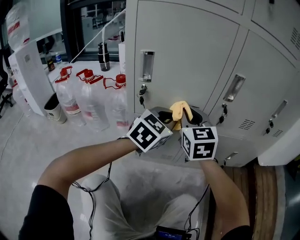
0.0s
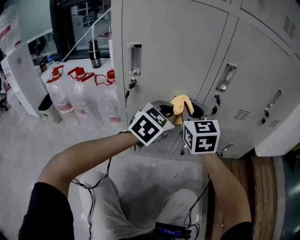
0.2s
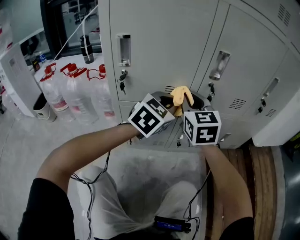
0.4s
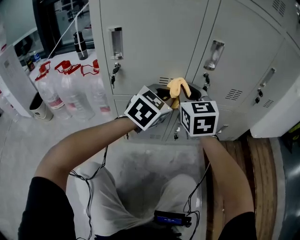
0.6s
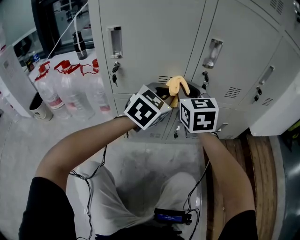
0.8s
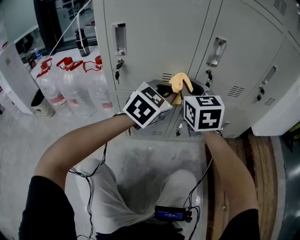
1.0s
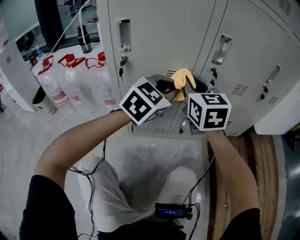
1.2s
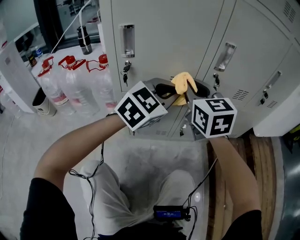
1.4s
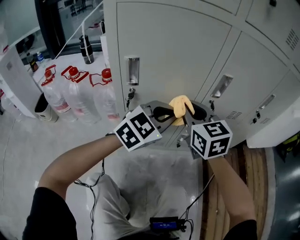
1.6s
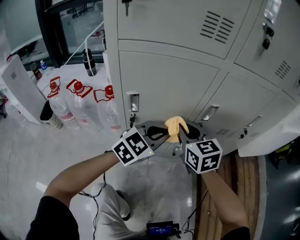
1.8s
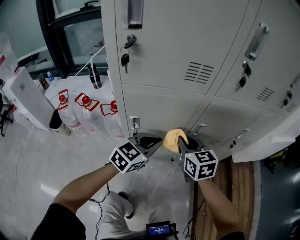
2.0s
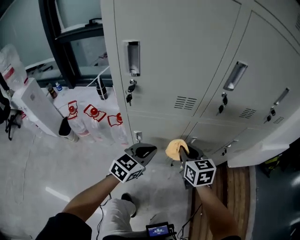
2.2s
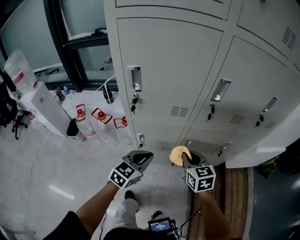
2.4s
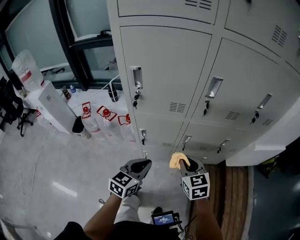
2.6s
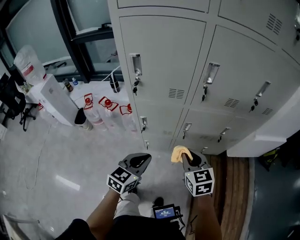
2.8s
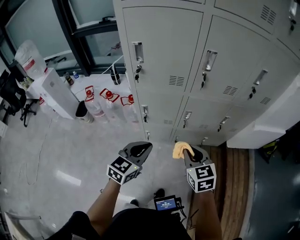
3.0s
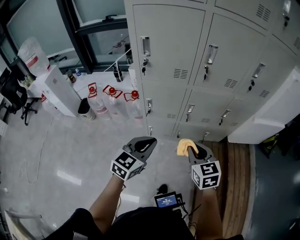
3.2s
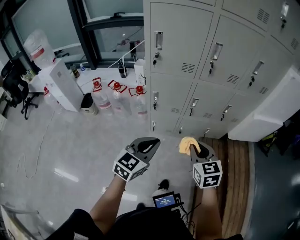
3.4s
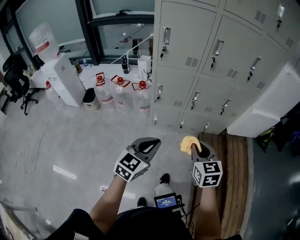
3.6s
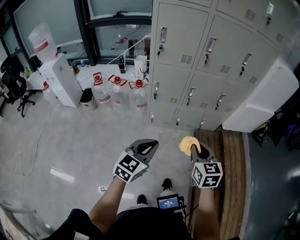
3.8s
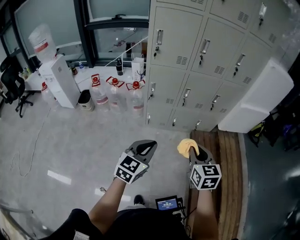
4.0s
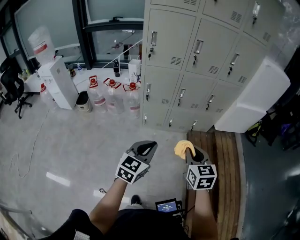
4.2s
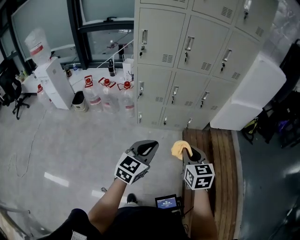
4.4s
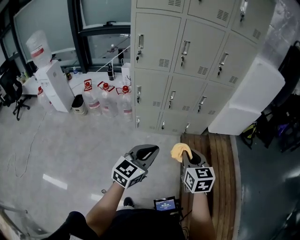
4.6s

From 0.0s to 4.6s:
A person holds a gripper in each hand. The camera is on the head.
From 0.0s to 1.6s: The grippers both shift upward by some 5 cm.
From 1.6s to 3.0s: The grippers both shift upward and backward by about 40 cm. The left gripper swivels approximately 30 degrees.
From 3.0s to 4.6s: The right gripper goes about 30 cm backward; the left gripper heads backward and to the right, covering roughly 35 cm.

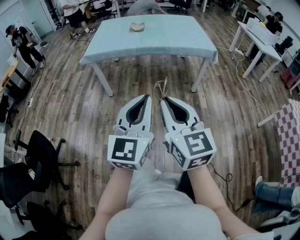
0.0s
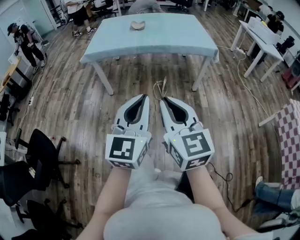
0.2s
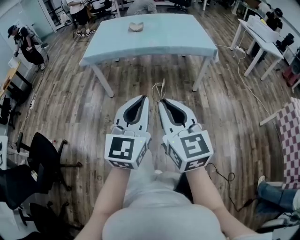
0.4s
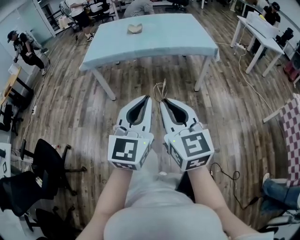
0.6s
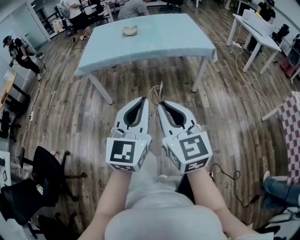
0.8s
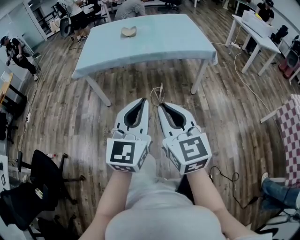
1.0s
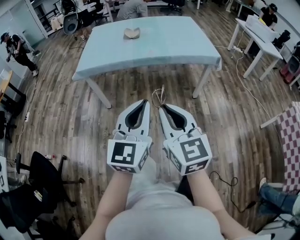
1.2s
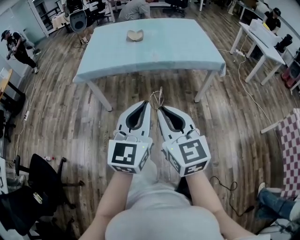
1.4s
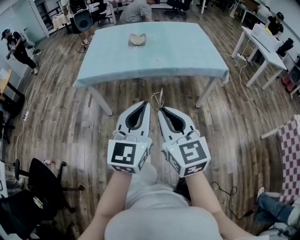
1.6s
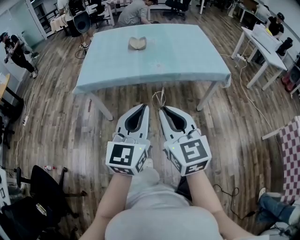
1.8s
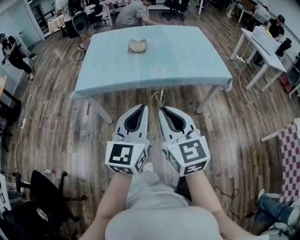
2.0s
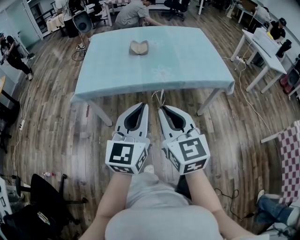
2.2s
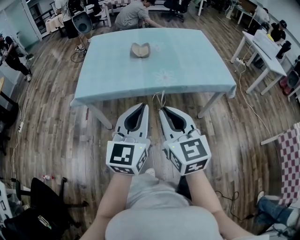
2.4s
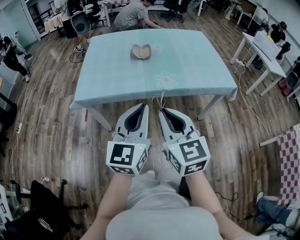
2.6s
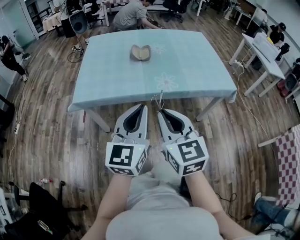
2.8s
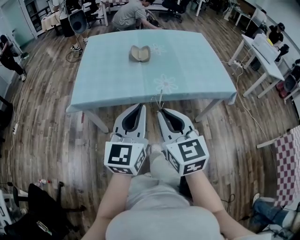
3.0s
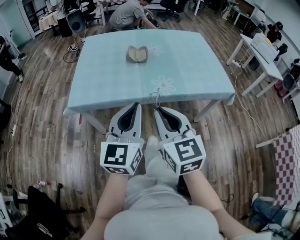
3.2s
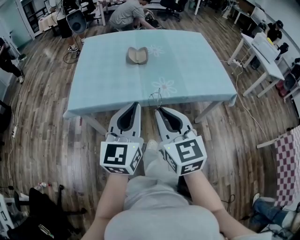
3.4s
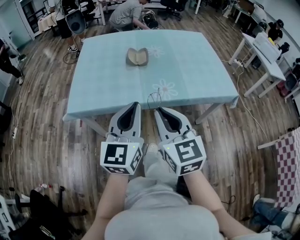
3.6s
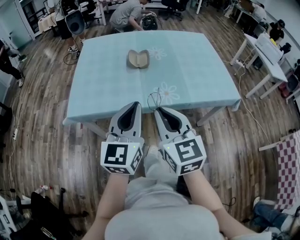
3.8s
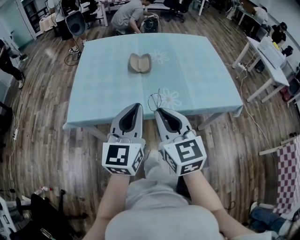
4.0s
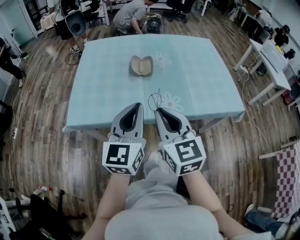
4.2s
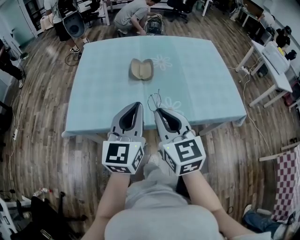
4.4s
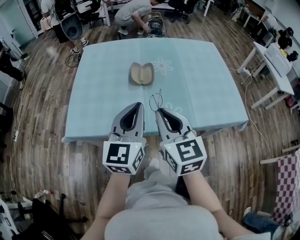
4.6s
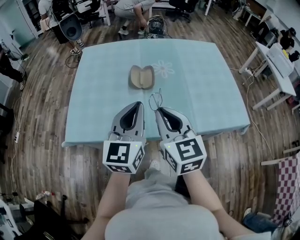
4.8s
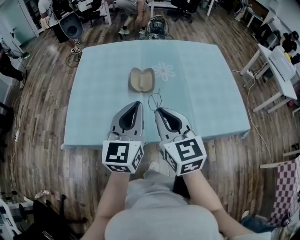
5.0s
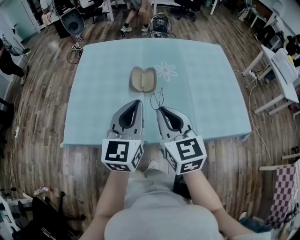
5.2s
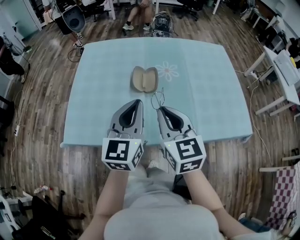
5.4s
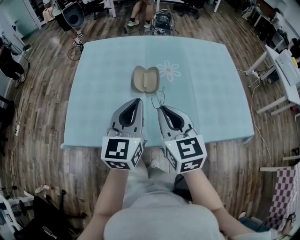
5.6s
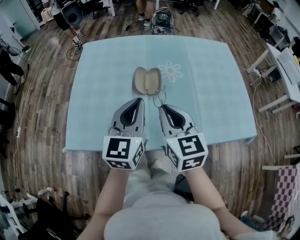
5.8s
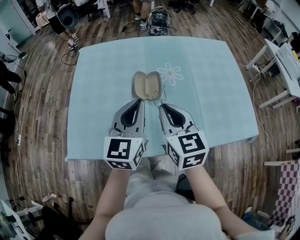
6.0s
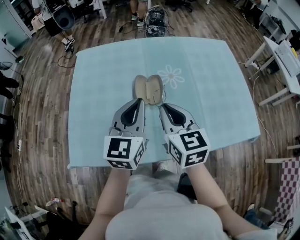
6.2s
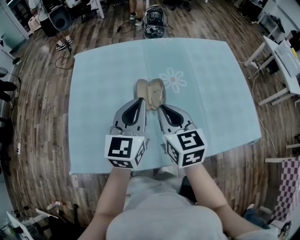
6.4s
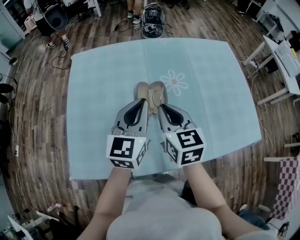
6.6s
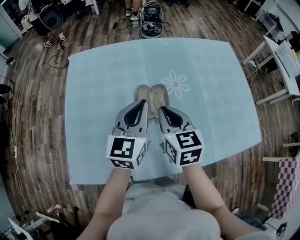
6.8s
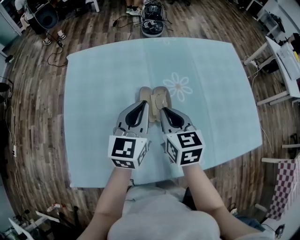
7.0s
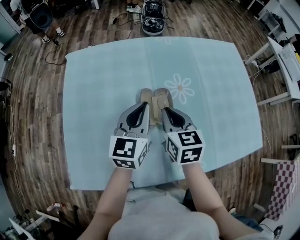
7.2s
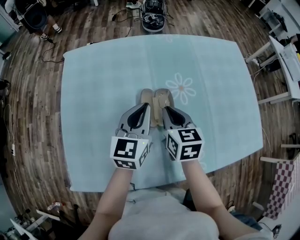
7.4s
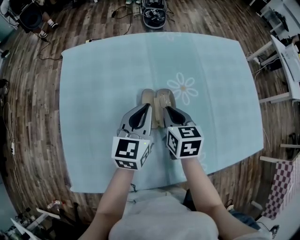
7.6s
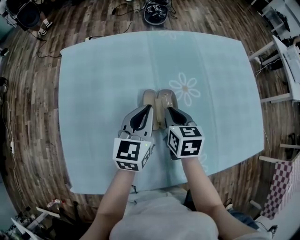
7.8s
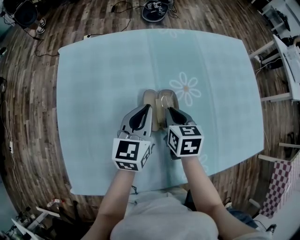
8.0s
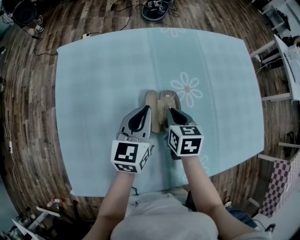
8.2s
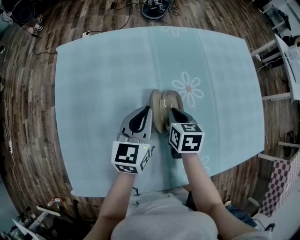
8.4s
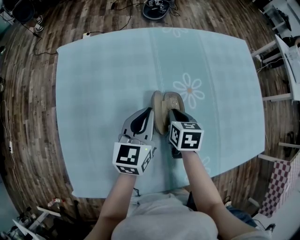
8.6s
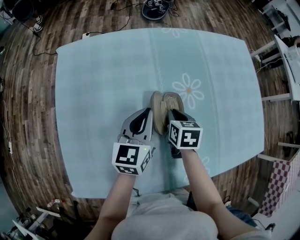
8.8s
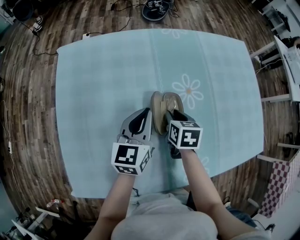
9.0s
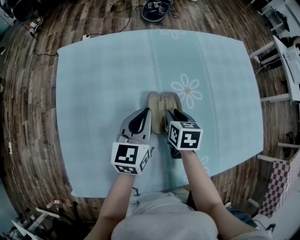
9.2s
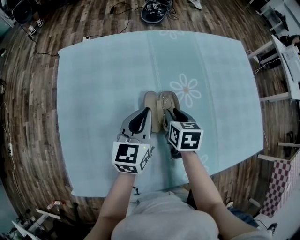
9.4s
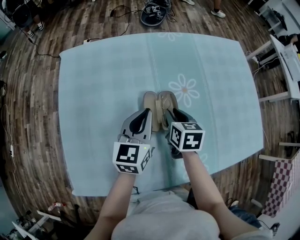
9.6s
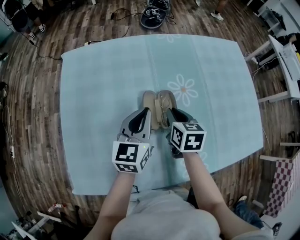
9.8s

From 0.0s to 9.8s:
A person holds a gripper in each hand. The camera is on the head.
From 0.0s to 1.4s: Both grippers move forward, approximately 20 cm.
From 1.4s to 2.8s: The left gripper travels forward and to the left by about 25 cm, while the right gripper travels forward by about 25 cm.
From 2.8s to 4.2s: The grippers both shift forward by approximately 15 cm.
From 4.2s to 5.6s: Both grippers move forward, roughly 15 cm.
From 5.6s to 7.0s: The right gripper shifts about 20 cm forward and downward; the left gripper heads forward, covering roughly 20 cm.
From 7.0s to 8.4s: The left gripper shifts roughly 10 cm downward, while the right gripper moves downward and forward, about 15 cm, and rotates approximately 20 degrees.
From 8.4s to 9.8s: The grippers stay close to where they were, moving slightly.

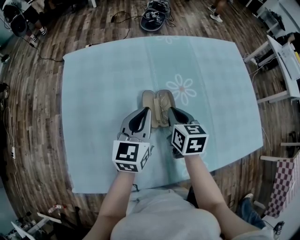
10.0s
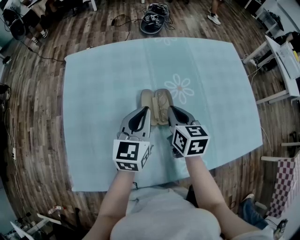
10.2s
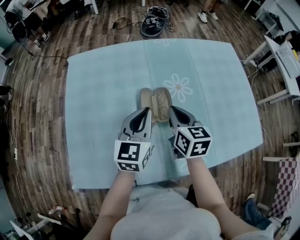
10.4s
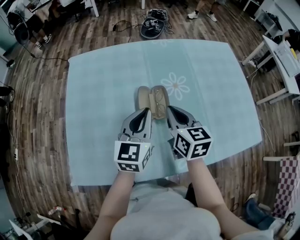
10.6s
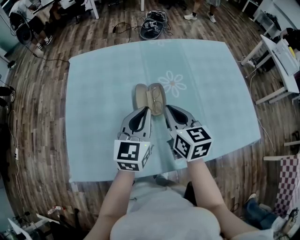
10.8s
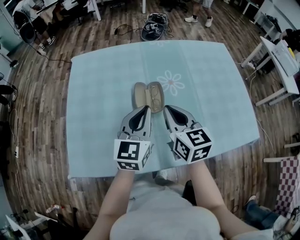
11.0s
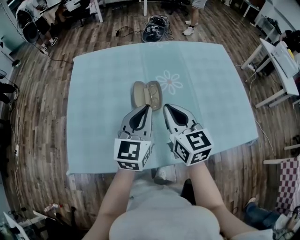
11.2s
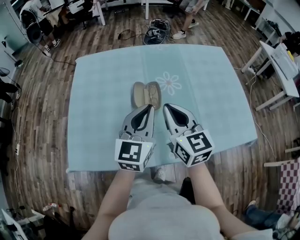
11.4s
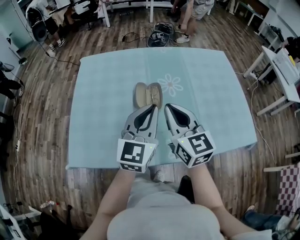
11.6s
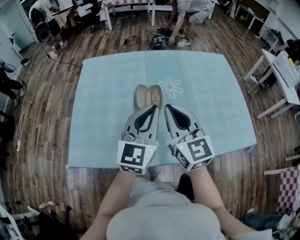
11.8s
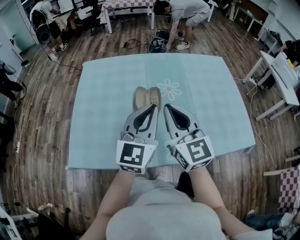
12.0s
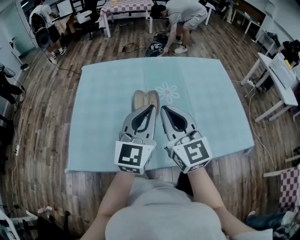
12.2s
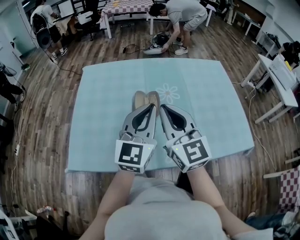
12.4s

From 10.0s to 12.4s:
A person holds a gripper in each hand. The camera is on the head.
From 10.0s to 11.2s: The right gripper moves upward and backward, about 15 cm, and turns by some 30 degrees. The left gripper moves backward, upward and to the right, about 15 cm.
From 11.2s to 12.4s: The left gripper moves upward, roughly 10 cm, while the right gripper is displaced upward and backward by about 10 cm, and changes its angle by some 20 degrees.

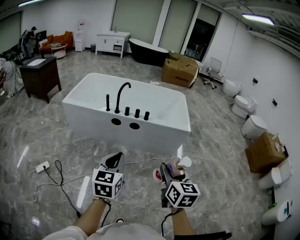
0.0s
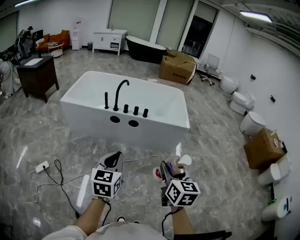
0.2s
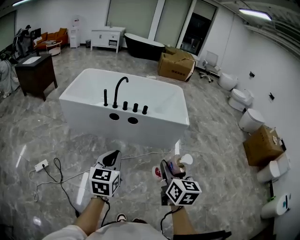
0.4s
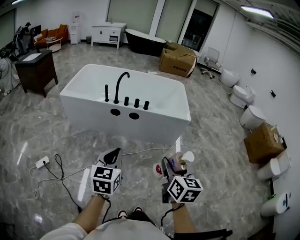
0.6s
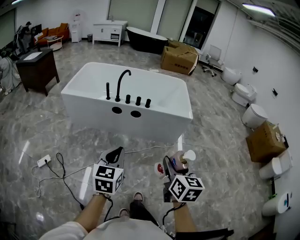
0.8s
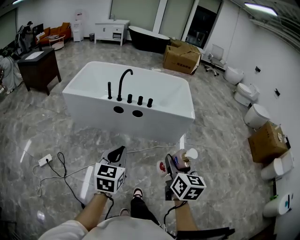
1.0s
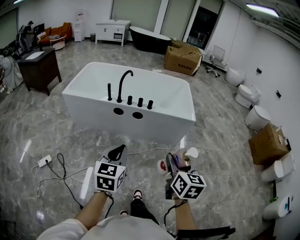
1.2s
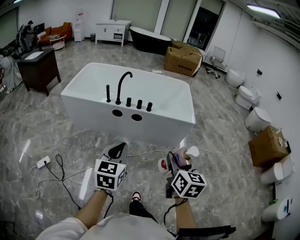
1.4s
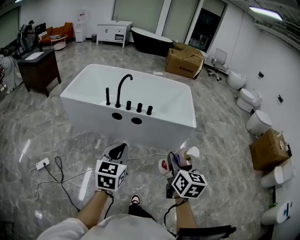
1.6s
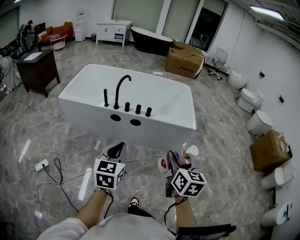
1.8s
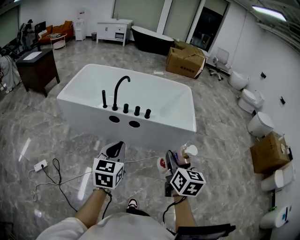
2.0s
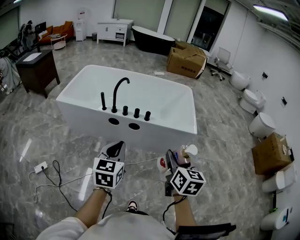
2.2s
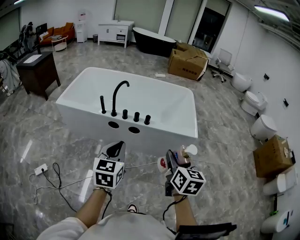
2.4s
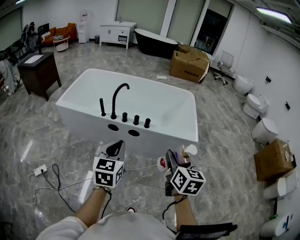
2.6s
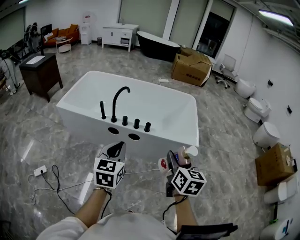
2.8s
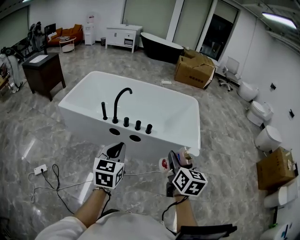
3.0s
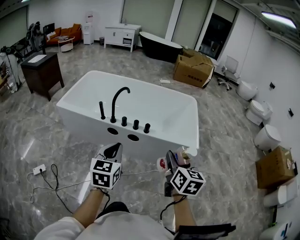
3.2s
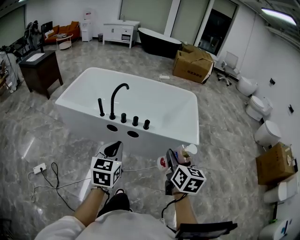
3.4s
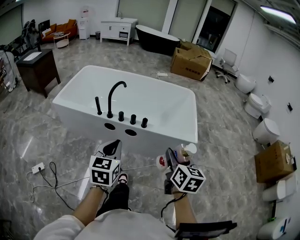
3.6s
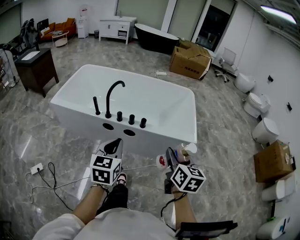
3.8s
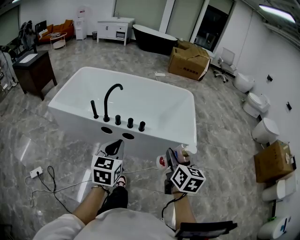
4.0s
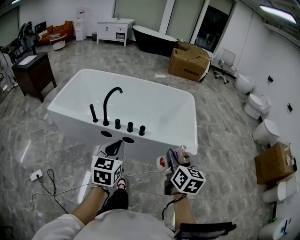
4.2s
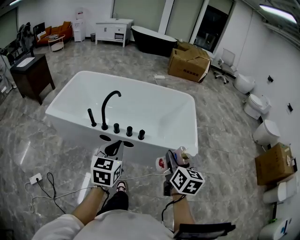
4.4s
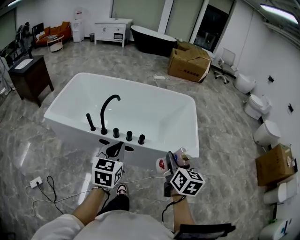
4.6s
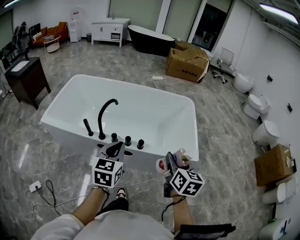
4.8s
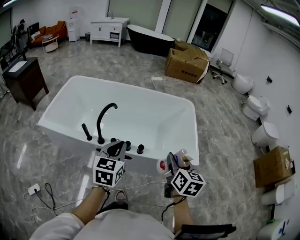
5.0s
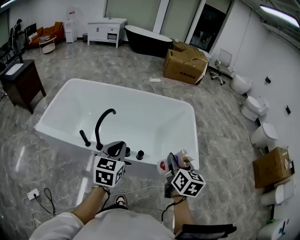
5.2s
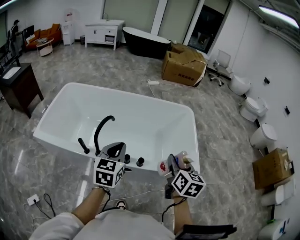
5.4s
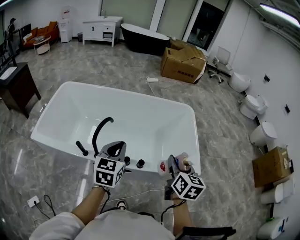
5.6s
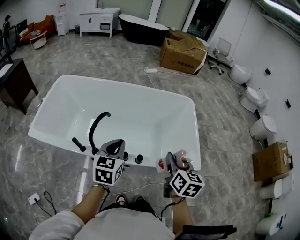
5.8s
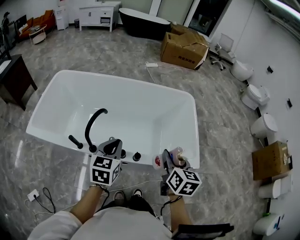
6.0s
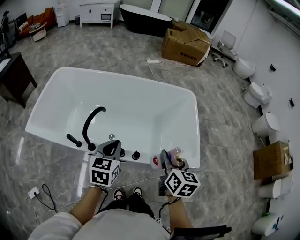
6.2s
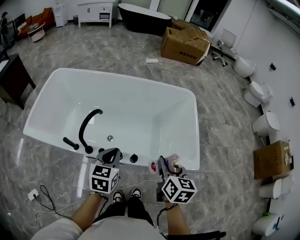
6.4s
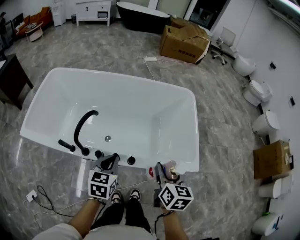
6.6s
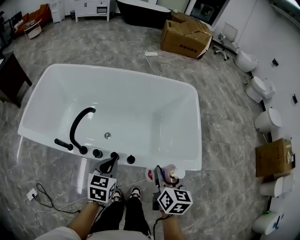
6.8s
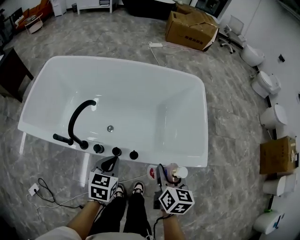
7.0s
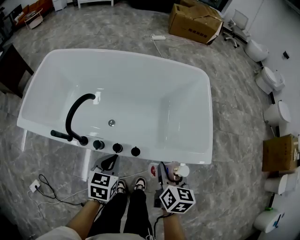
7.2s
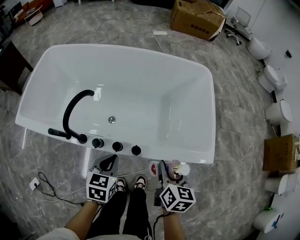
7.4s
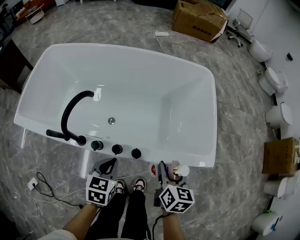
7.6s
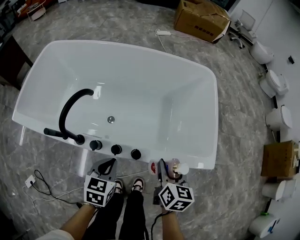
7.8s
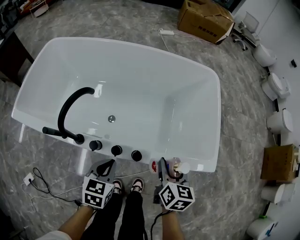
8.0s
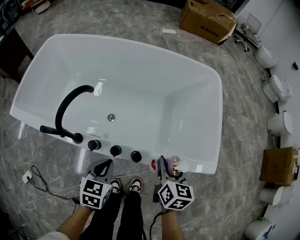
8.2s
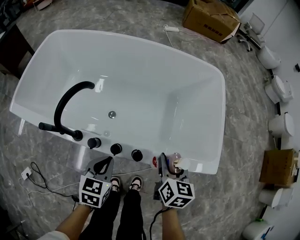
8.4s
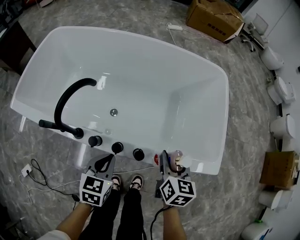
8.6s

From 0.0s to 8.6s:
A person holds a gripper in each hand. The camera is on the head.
From 0.0s to 1.4s: The left gripper shifts by about 5 cm; the right gripper goes some 5 cm forward.
From 1.4s to 2.8s: Both grippers travel together forward, approximately 20 cm.
From 2.8s to 4.4s: Both grippers travel together forward, some 10 cm.
From 4.4s to 5.8s: The two grippers go about 20 cm forward.
From 5.8s to 7.2s: The grippers both shift downward by roughly 15 cm.
From 7.2s to 8.6s: The left gripper travels downward by roughly 5 cm. The right gripper goes roughly 10 cm forward and downward.
